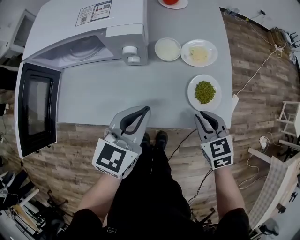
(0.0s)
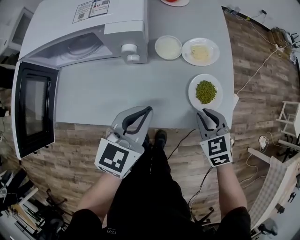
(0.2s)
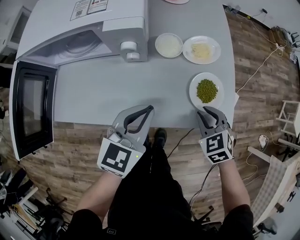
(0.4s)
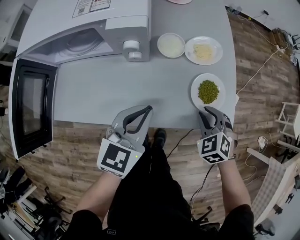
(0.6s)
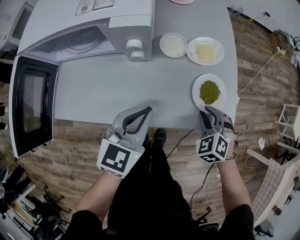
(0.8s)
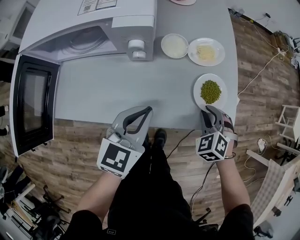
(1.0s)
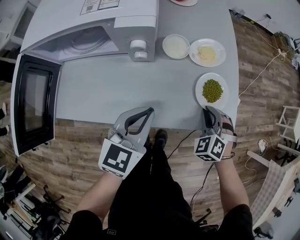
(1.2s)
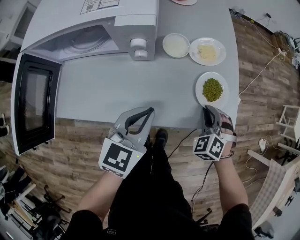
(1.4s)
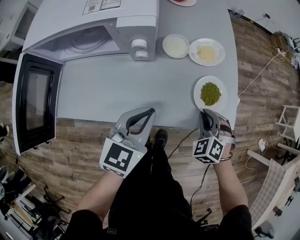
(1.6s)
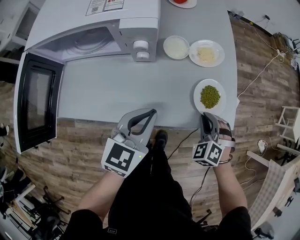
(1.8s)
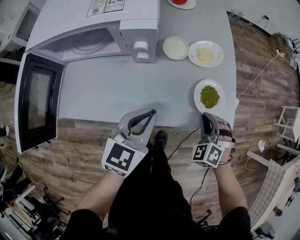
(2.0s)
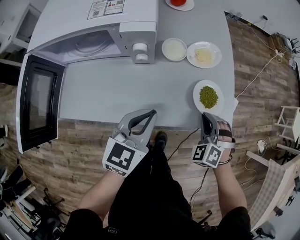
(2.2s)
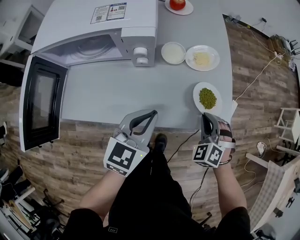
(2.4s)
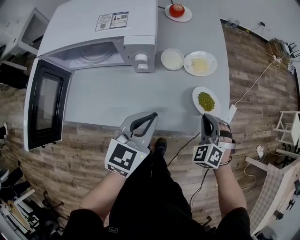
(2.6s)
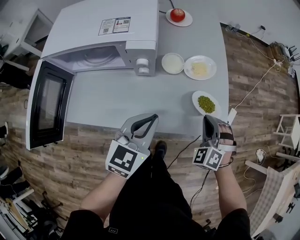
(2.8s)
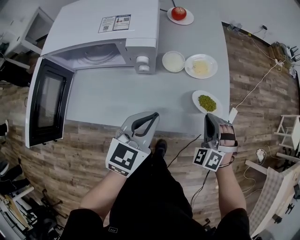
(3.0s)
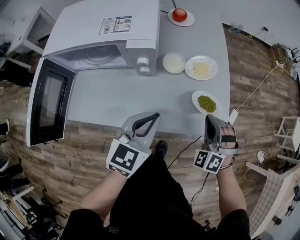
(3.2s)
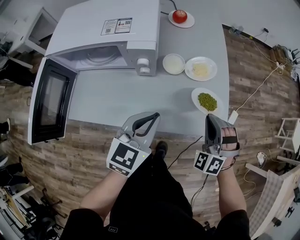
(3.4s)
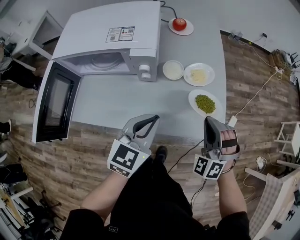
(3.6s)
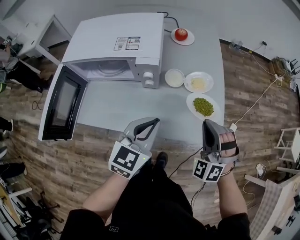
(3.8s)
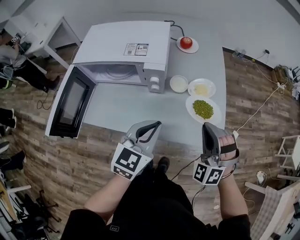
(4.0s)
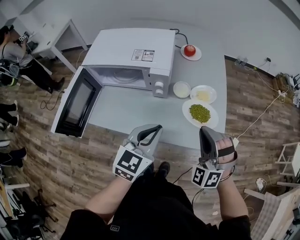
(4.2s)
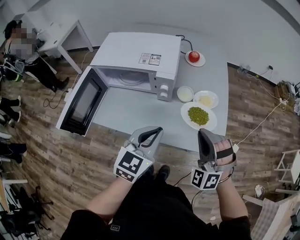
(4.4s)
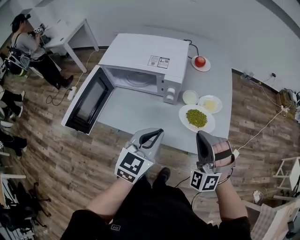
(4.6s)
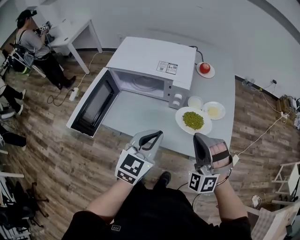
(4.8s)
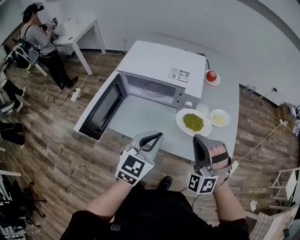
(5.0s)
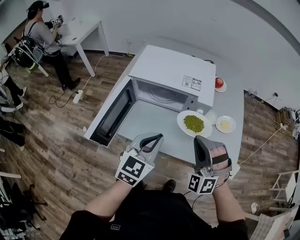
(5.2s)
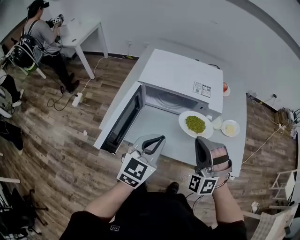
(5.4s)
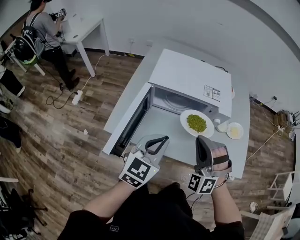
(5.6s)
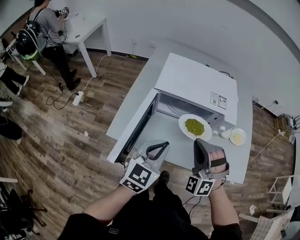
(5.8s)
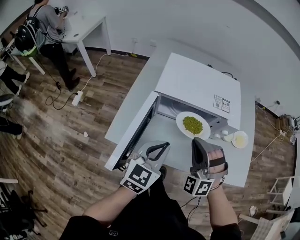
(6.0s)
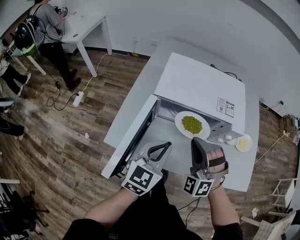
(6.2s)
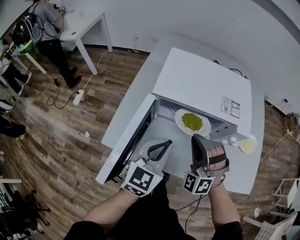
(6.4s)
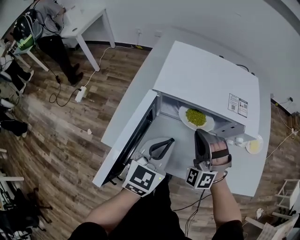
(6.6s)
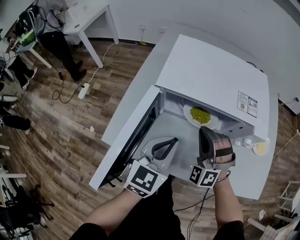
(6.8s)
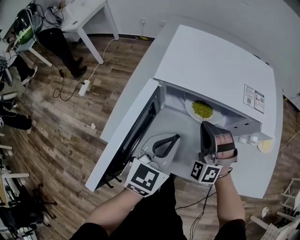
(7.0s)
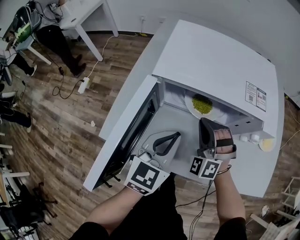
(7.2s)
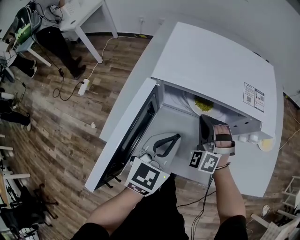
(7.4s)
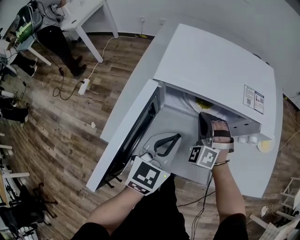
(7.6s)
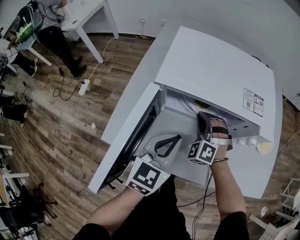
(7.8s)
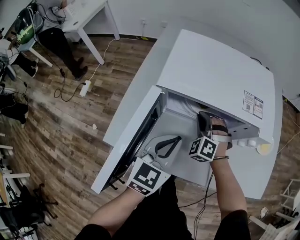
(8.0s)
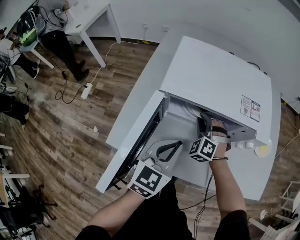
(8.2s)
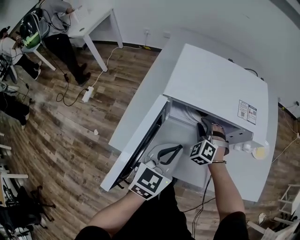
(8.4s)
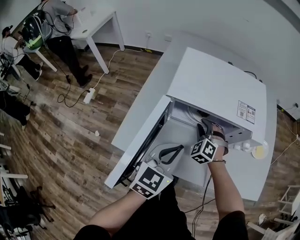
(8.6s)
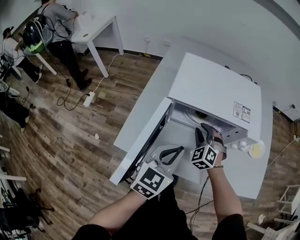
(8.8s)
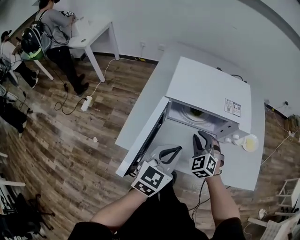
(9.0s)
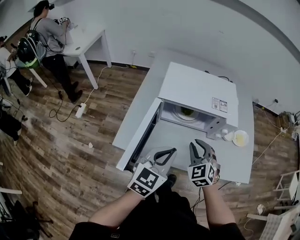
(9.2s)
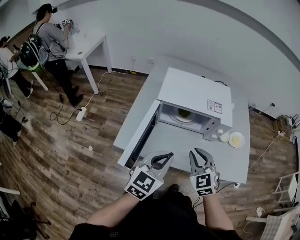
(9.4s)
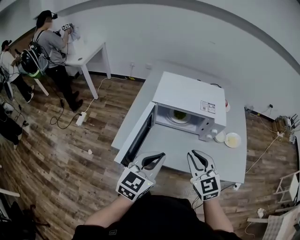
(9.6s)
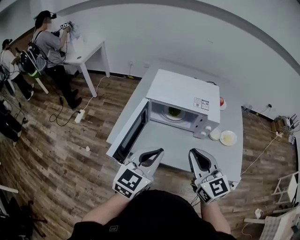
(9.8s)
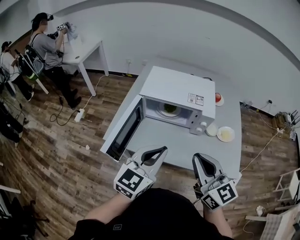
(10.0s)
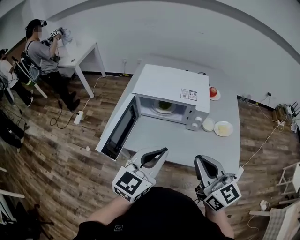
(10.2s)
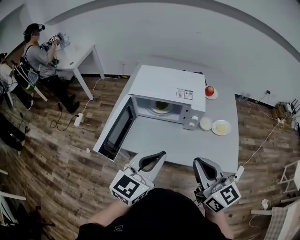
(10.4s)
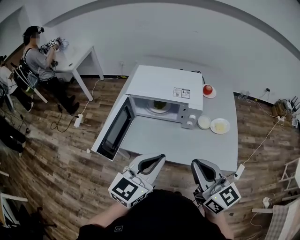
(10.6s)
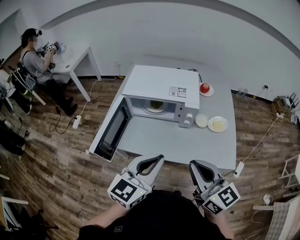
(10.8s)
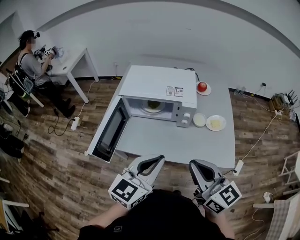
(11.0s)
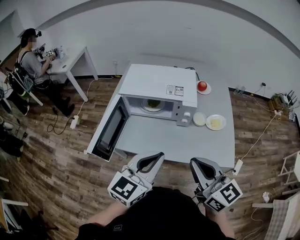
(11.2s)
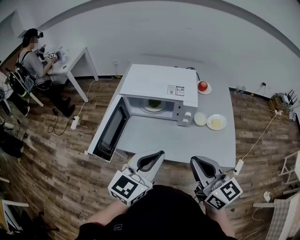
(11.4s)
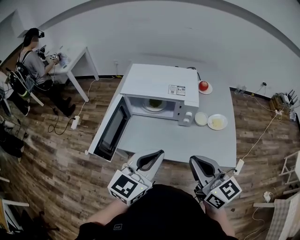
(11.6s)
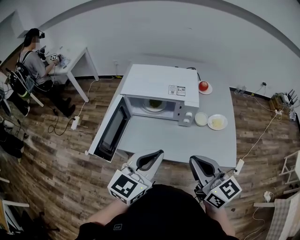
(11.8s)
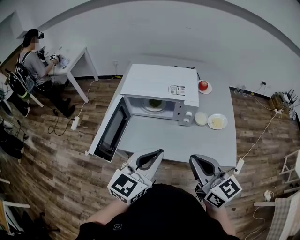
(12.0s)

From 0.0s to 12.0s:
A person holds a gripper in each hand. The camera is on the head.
From 0.0s to 1.6s: The right gripper goes approximately 5 cm downward, and swivels some 40 degrees.
From 1.6s to 3.0s: The left gripper goes roughly 5 cm upward. Meanwhile the right gripper is displaced upward by roughly 10 cm, and swivels roughly 20 degrees.
From 3.0s to 4.4s: The left gripper shifts approximately 10 cm upward, while the right gripper moves upward, some 20 cm, and swivels approximately 30 degrees.
From 4.4s to 6.0s: The grippers both shift to the left by roughly 35 cm.
From 6.0s to 7.6s: The right gripper moves downward and forward, about 25 cm. Meanwhile the left gripper travels downward and forward by some 15 cm.
From 7.6s to 9.0s: The right gripper heads backward and upward, covering roughly 10 cm, and rotates about 20 degrees; the left gripper moves upward and backward, approximately 10 cm.
From 9.0s to 10.4s: The left gripper moves backward, to the right and upward, roughly 25 cm, while the right gripper is displaced backward, upward and to the right by some 35 cm, and twists some 50 degrees clockwise, seen from behind.
From 10.4s to 12.0s: There are only small adjustments of the grippers.

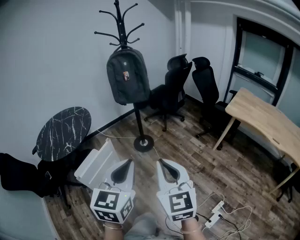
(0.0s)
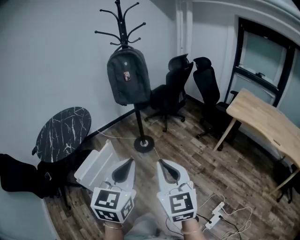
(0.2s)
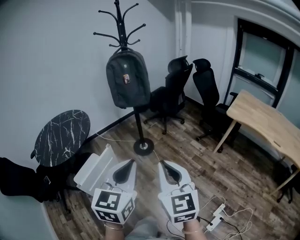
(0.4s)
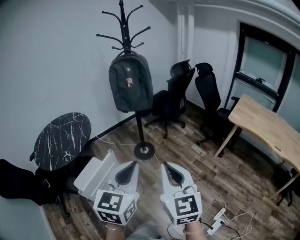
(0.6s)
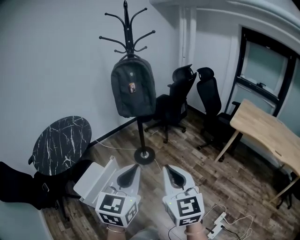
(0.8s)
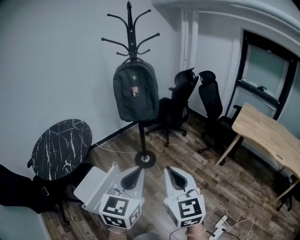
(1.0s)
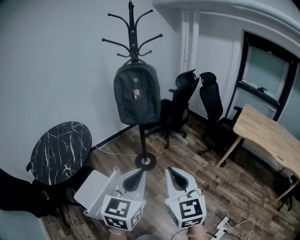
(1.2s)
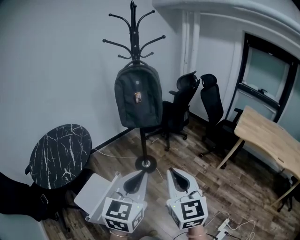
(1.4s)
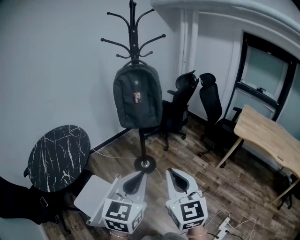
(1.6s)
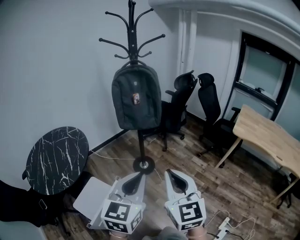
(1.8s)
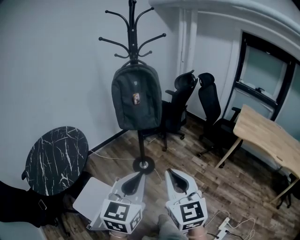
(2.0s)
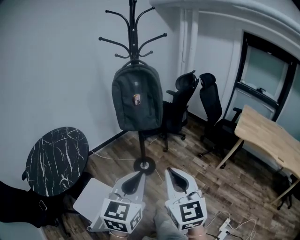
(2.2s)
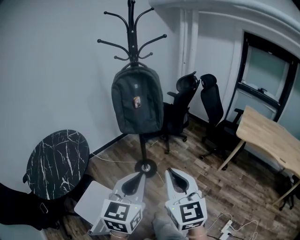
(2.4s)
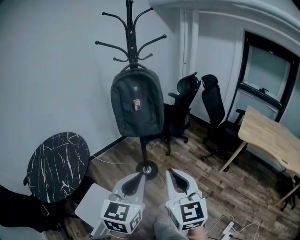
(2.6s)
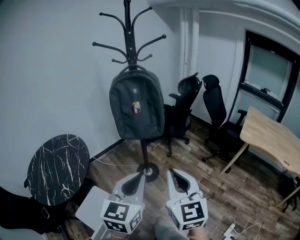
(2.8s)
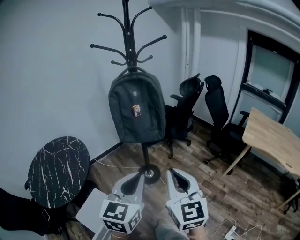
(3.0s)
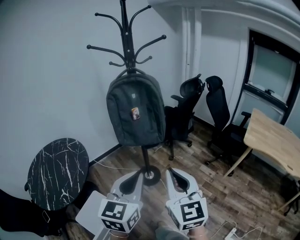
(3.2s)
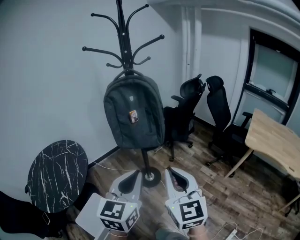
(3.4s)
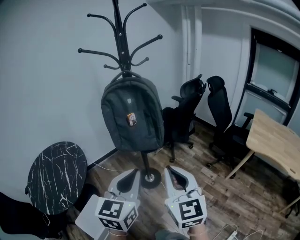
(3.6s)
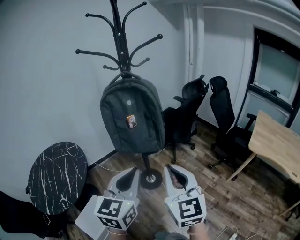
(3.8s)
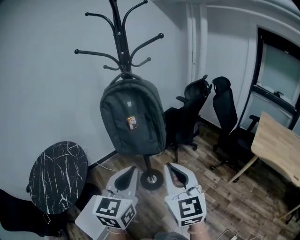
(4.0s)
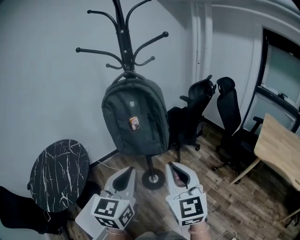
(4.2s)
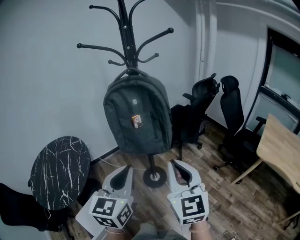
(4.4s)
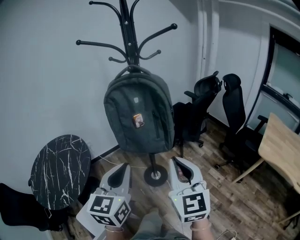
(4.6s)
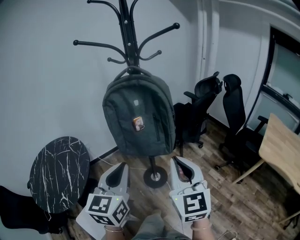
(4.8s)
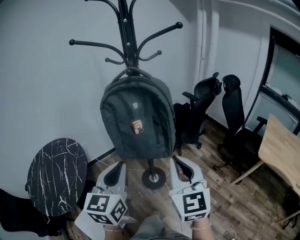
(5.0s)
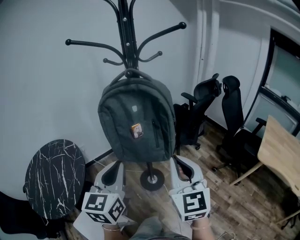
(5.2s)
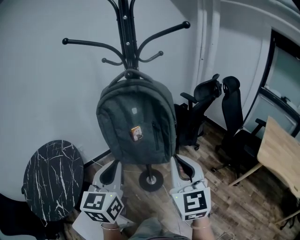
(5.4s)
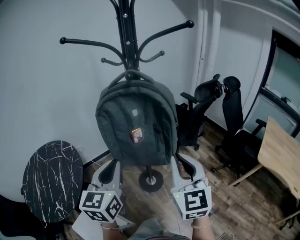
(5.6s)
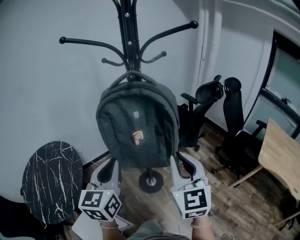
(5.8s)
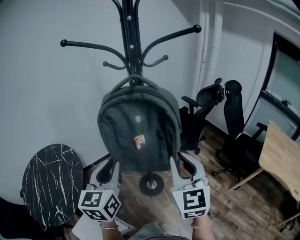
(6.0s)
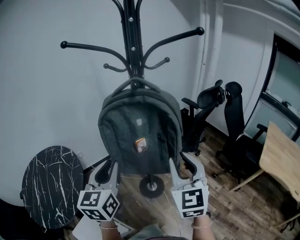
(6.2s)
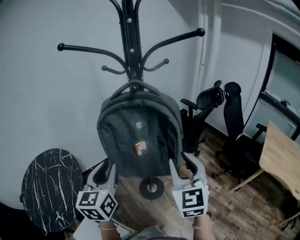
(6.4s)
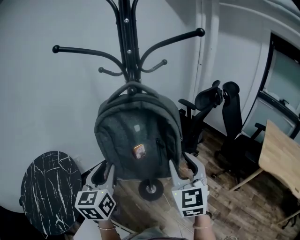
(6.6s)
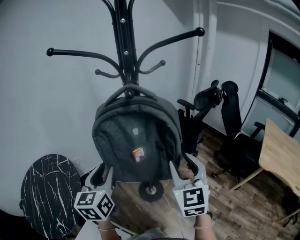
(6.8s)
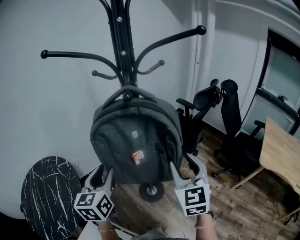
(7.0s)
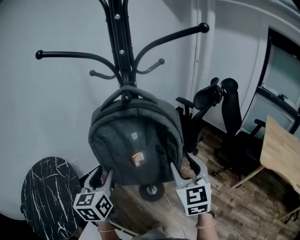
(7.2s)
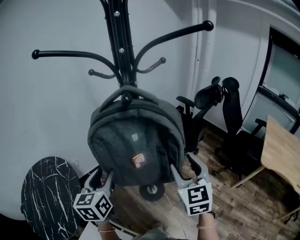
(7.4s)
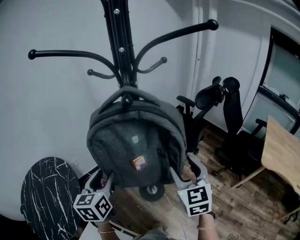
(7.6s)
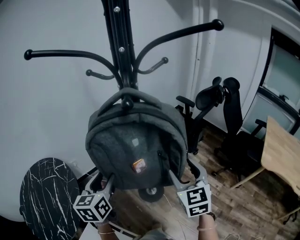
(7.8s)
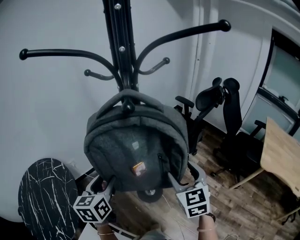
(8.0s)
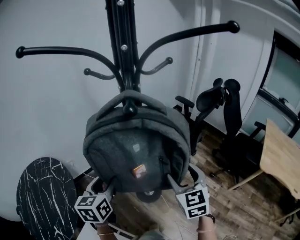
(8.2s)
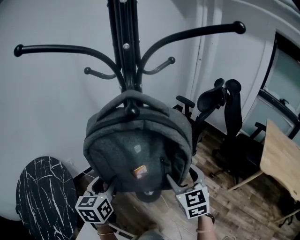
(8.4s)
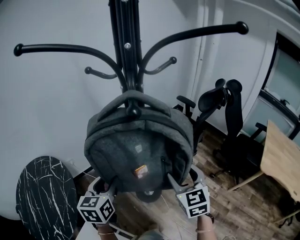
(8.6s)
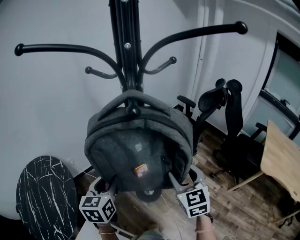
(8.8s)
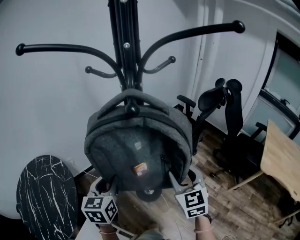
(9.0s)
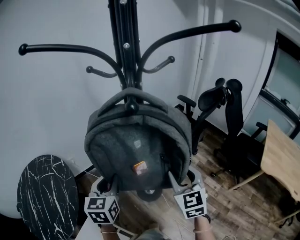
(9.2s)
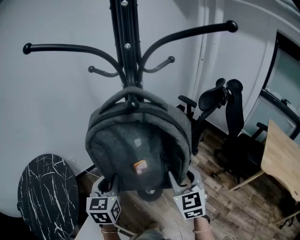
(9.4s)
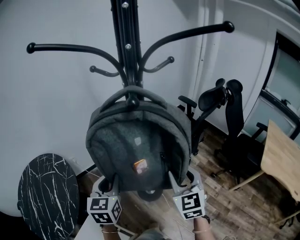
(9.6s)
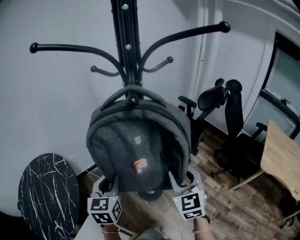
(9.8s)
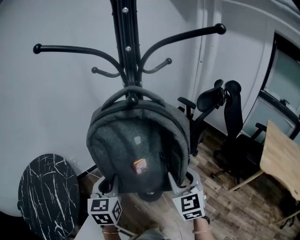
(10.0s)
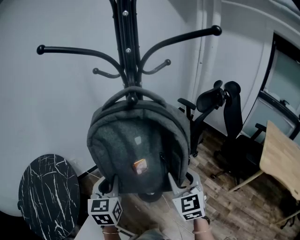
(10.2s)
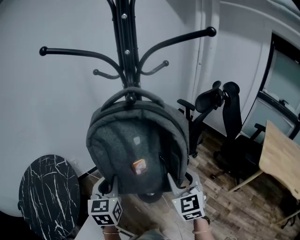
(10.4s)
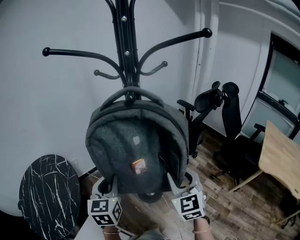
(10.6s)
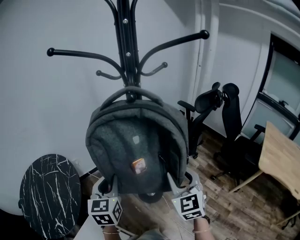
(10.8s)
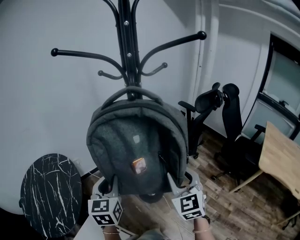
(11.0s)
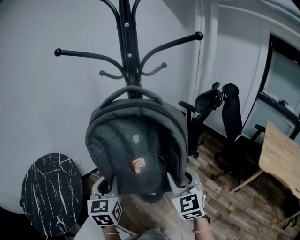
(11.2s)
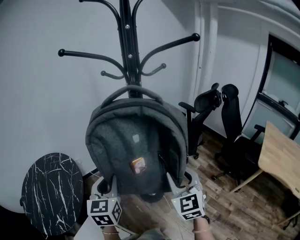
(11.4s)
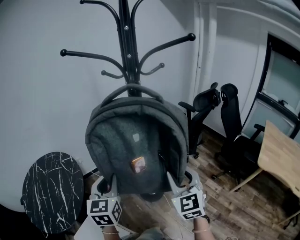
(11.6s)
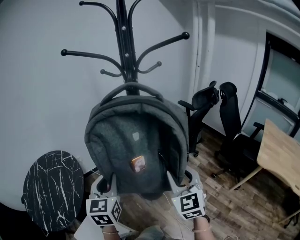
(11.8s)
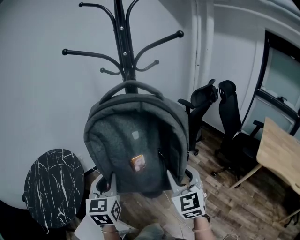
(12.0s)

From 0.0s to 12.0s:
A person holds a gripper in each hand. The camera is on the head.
From 0.0s to 1.6s: Both grippers travel together forward and to the left, about 20 cm.
From 1.6s to 3.0s: Both grippers travel together forward, approximately 15 cm.
From 3.0s to 4.4s: The two grippers go roughly 15 cm forward.
From 4.4s to 6.0s: The right gripper is displaced forward by approximately 15 cm; the left gripper moves forward and to the left, roughly 20 cm.
From 6.0s to 7.6s: Both grippers move forward and downward, approximately 10 cm. The left gripper opens, while the right gripper opens.
From 7.6s to 9.0s: The right gripper moves about 5 cm.
From 9.0s to 10.4s: Both grippers move backward, about 5 cm.
From 10.4s to 12.0s: Both grippers travel together backward, some 10 cm.
